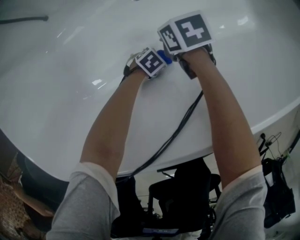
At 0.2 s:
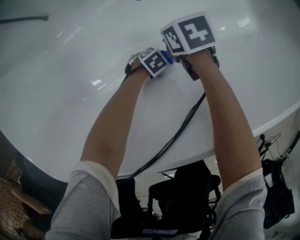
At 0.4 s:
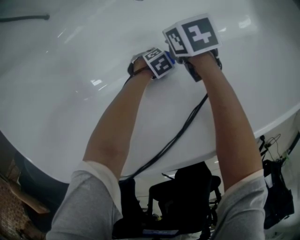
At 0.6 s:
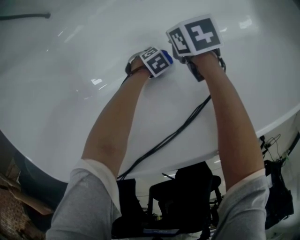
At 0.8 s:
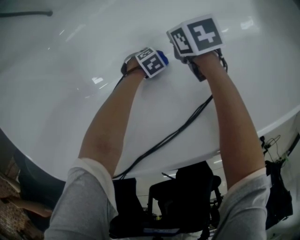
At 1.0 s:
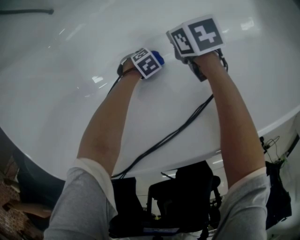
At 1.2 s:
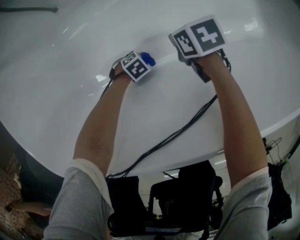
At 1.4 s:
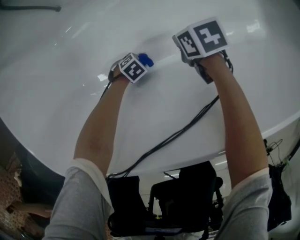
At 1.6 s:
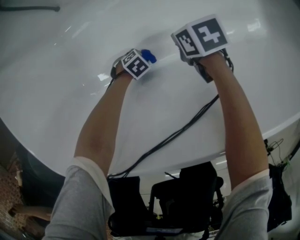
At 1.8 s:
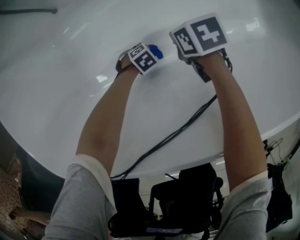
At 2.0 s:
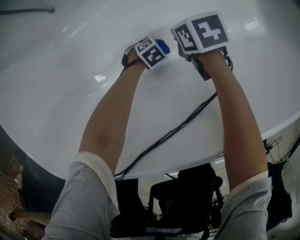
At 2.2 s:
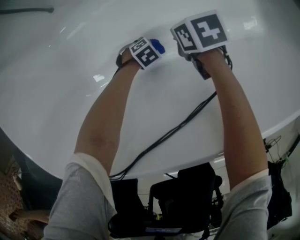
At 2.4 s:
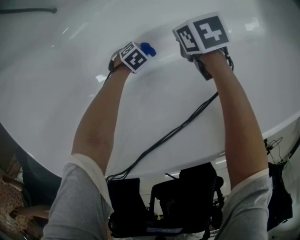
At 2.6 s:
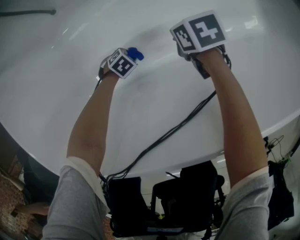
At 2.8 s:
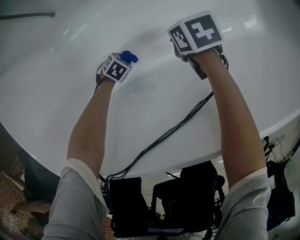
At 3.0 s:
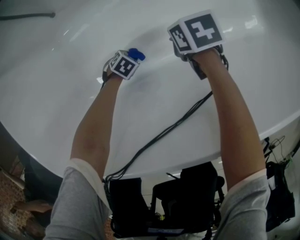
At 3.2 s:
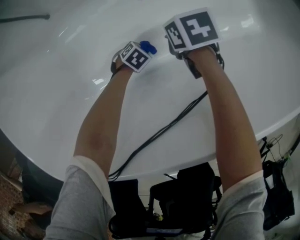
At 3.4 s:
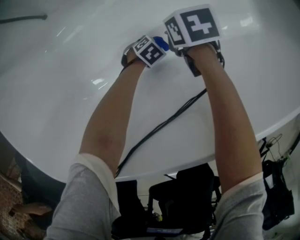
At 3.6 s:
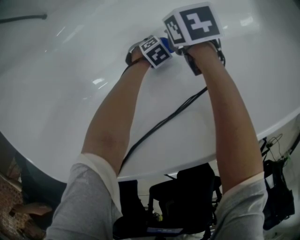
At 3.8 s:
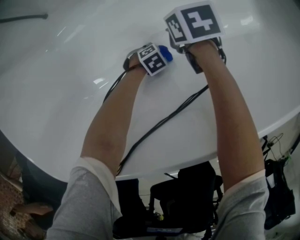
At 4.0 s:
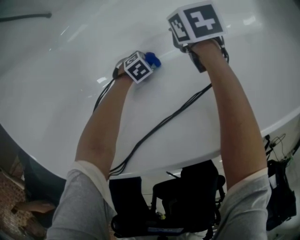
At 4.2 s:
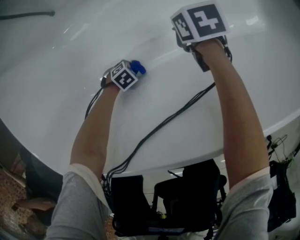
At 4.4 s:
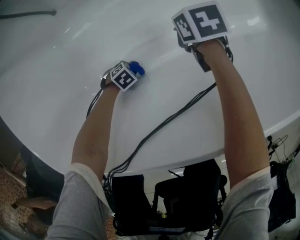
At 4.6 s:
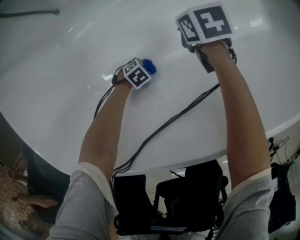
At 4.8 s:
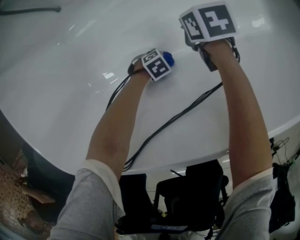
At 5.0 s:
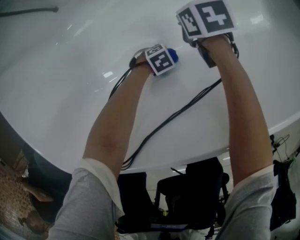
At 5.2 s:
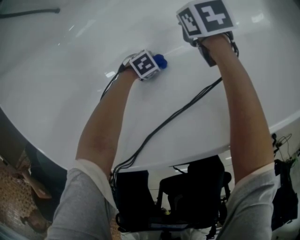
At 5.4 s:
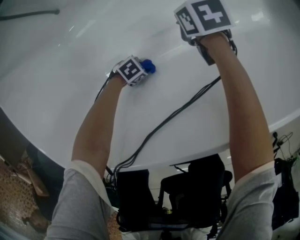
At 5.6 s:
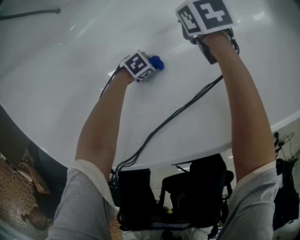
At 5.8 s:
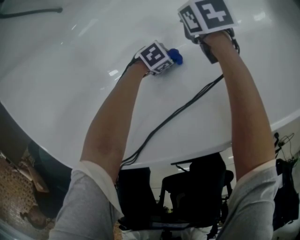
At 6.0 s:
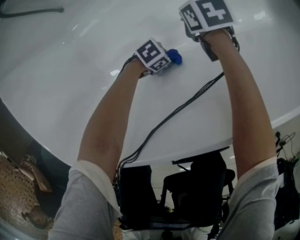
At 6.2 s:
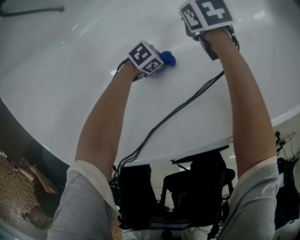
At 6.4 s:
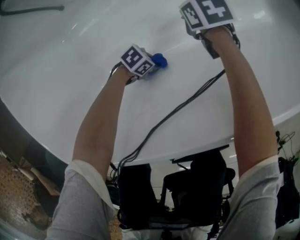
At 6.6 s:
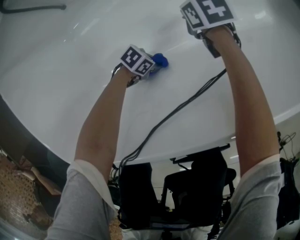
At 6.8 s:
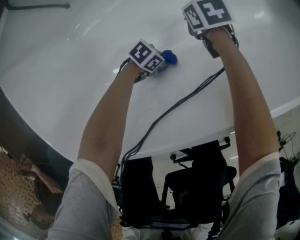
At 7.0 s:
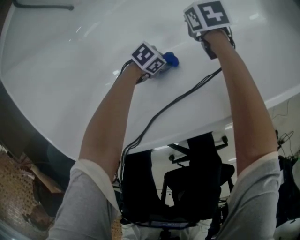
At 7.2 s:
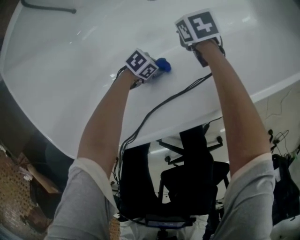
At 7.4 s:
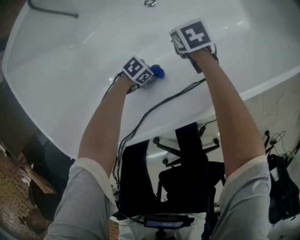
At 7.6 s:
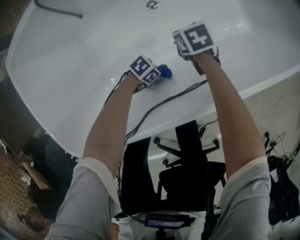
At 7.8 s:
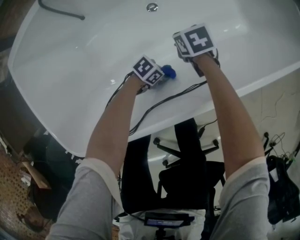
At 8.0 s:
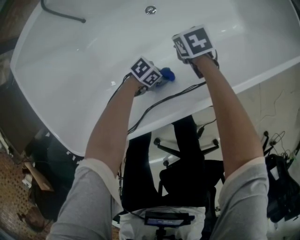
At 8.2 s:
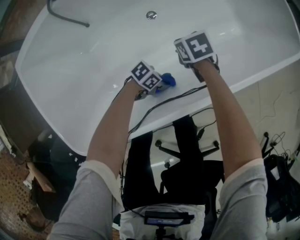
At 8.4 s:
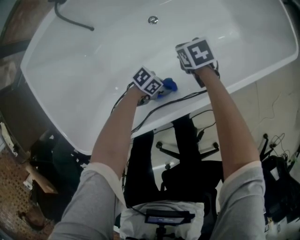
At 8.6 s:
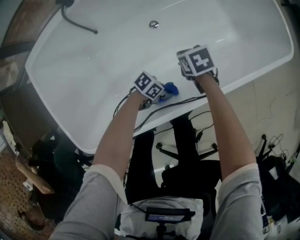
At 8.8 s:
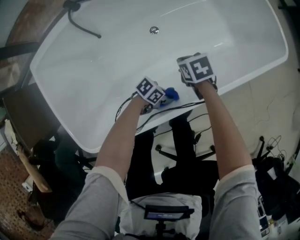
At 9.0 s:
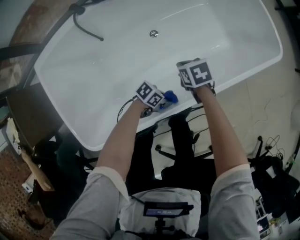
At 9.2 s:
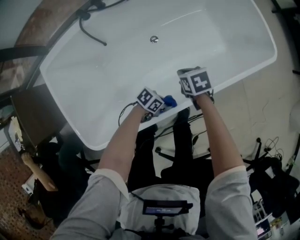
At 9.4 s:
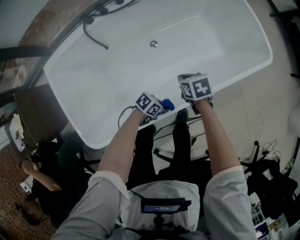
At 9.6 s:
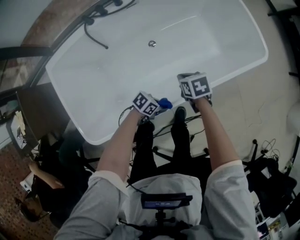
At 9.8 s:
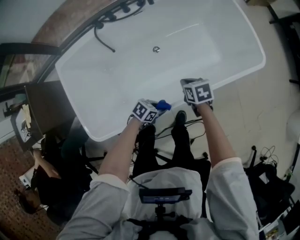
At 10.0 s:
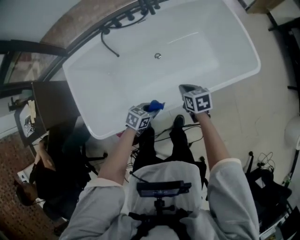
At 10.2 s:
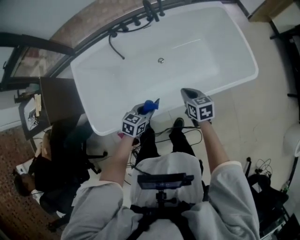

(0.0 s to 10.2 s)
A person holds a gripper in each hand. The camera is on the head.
0.0 s - 1.4 s: The left gripper moves approximately 15 cm.
4.4 s - 5.8 s: The left gripper moves some 15 cm, and rotates some 20 degrees.
5.8 s - 7.2 s: The left gripper is displaced upward by some 5 cm.
7.2 s - 8.8 s: Both grippers travel together upward, some 20 cm.
8.8 s - 10.2 s: The grippers both shift upward by approximately 25 cm. The left gripper rotates approximately 50 degrees. Meanwhile the right gripper turns by about 20 degrees.

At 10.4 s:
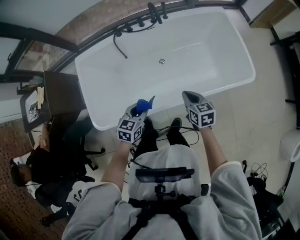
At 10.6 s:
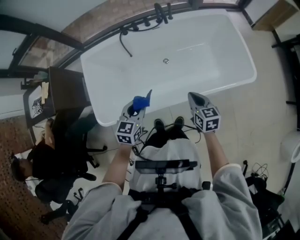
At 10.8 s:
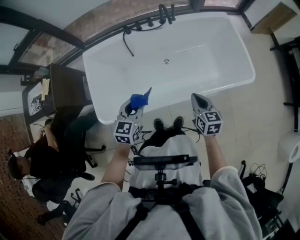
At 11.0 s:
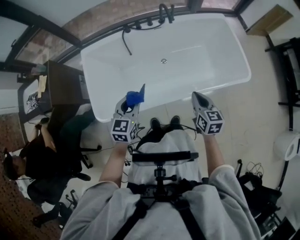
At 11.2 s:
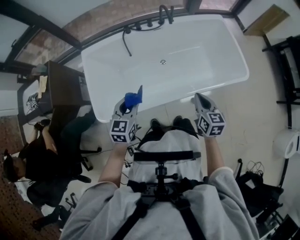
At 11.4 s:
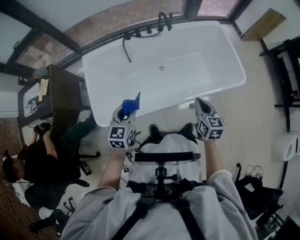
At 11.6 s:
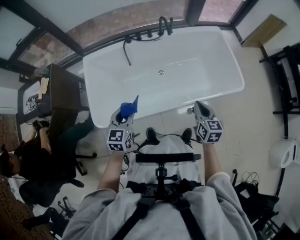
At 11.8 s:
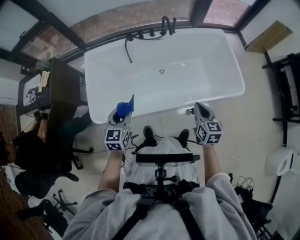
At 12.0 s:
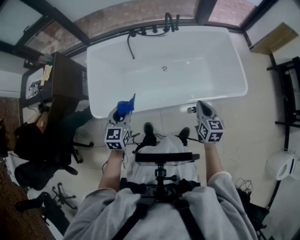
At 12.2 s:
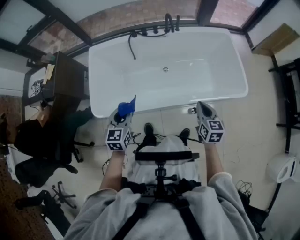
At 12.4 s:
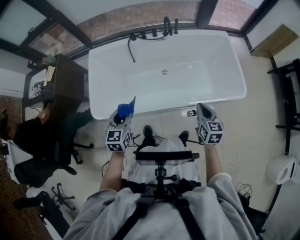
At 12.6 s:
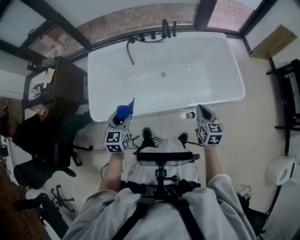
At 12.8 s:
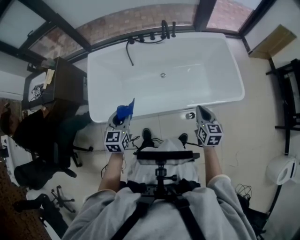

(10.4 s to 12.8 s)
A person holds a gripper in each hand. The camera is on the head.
10.4 s - 11.6 s: The right gripper is displaced upward and backward by some 15 cm. The left gripper goes roughly 20 cm upward, to the left and backward, and swivels some 20 degrees.
11.6 s - 12.8 s: The right gripper heads to the right, covering some 10 cm; the left gripper changes place by approximately 5 cm.

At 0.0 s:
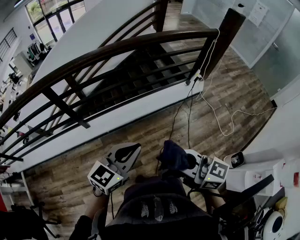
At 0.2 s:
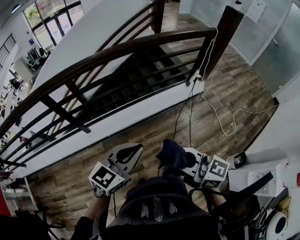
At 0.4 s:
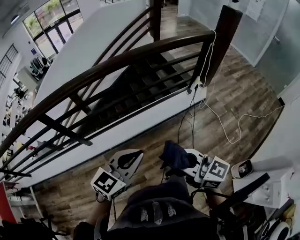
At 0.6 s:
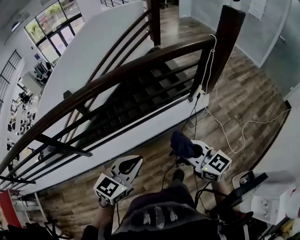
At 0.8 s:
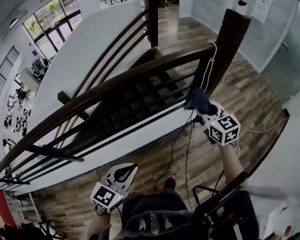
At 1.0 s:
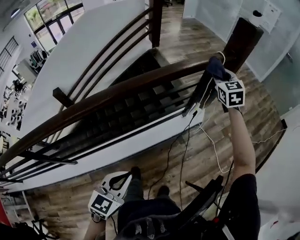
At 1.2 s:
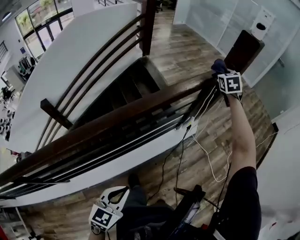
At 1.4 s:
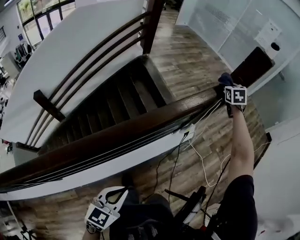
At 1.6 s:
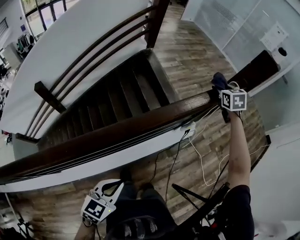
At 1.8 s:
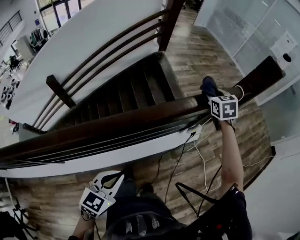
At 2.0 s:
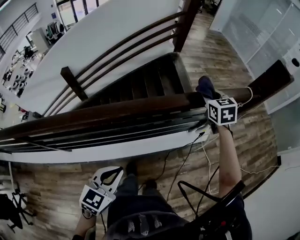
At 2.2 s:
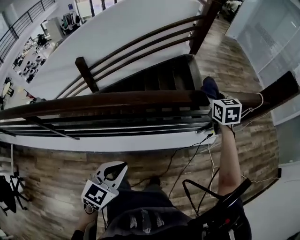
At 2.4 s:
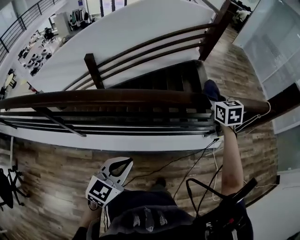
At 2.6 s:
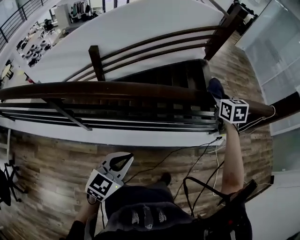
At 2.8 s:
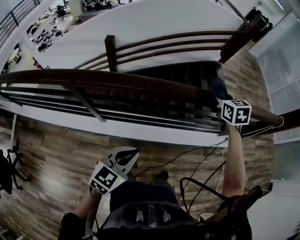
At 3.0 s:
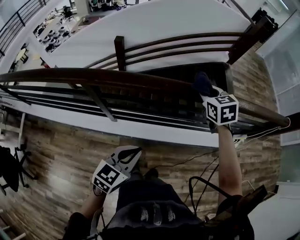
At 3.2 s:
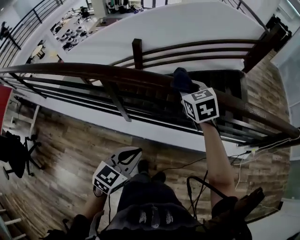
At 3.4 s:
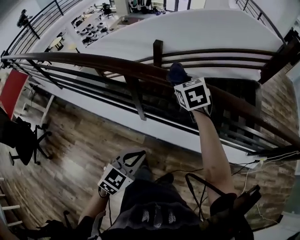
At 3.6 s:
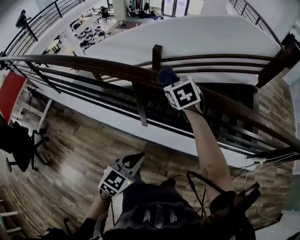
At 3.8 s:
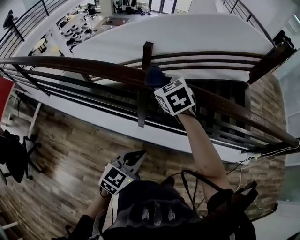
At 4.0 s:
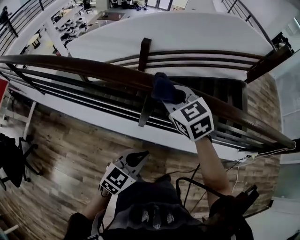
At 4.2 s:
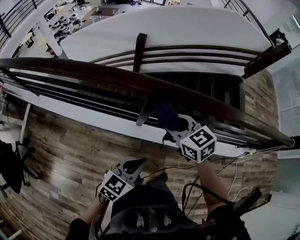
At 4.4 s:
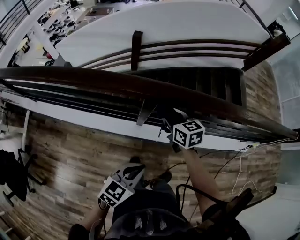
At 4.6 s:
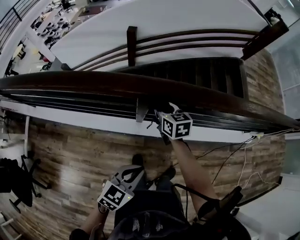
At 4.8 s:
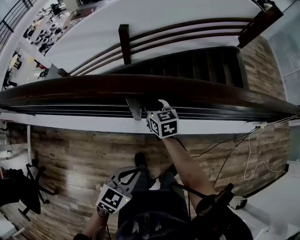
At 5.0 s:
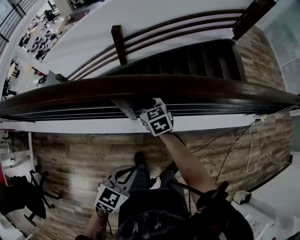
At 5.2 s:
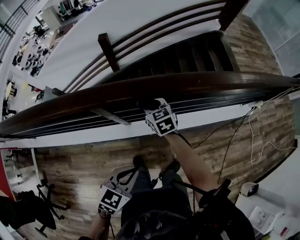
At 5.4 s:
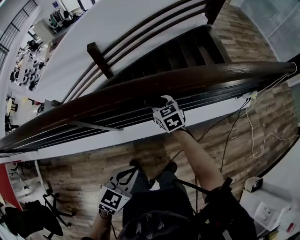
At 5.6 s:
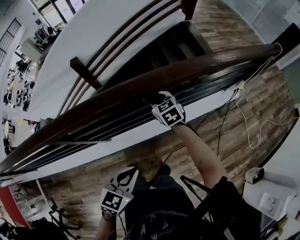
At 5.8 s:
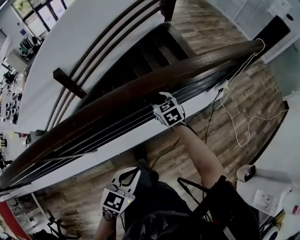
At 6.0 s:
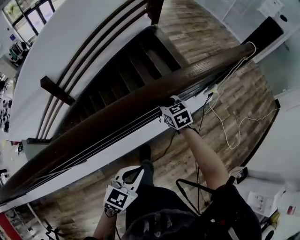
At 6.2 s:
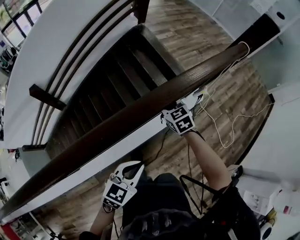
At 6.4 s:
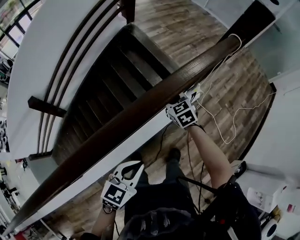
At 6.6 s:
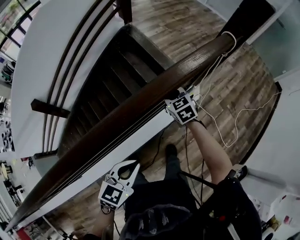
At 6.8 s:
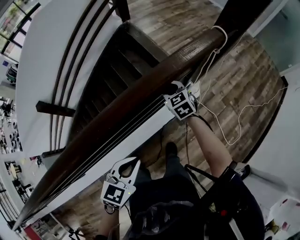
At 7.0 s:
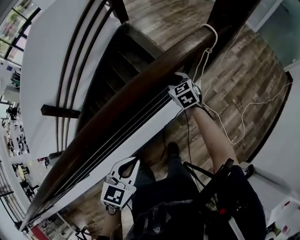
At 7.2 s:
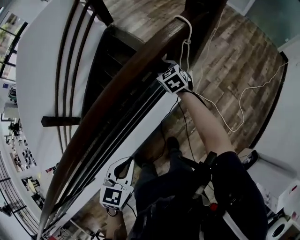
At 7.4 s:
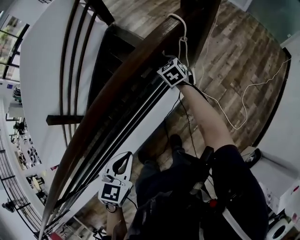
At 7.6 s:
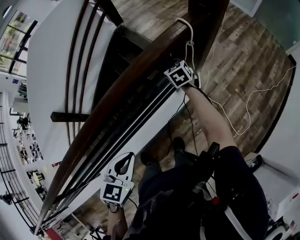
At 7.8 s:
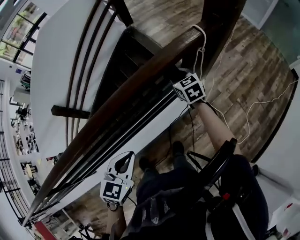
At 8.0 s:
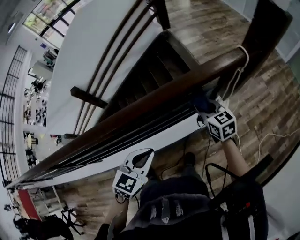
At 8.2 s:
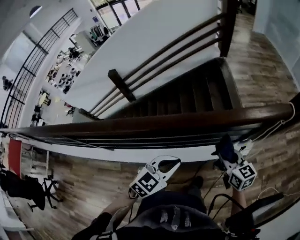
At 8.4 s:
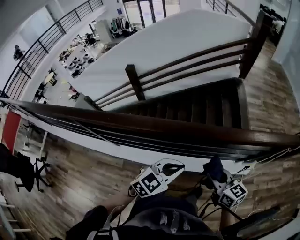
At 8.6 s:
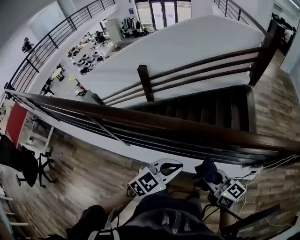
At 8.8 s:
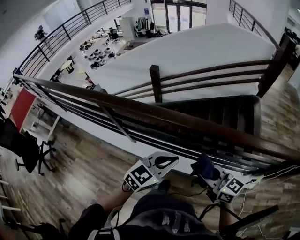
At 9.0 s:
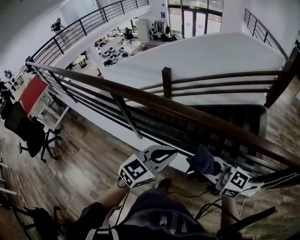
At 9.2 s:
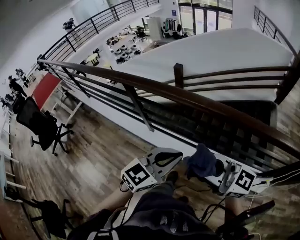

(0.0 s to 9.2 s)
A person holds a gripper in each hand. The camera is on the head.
0.0 s - 1.6 s: Both grippers are carried approximately 80 cm. The right gripper tips its fingers downward by some 40 degrees.
1.6 s - 3.0 s: Both grippers are carried roughly 60 cm. The right gripper rotates roughly 40 degrees; the left gripper swivels about 30 degrees.
3.0 s - 4.6 s: The left gripper goes about 25 cm to the left, while the right gripper goes some 50 cm to the left and downward, and rotates roughly 30 degrees.
4.6 s - 6.2 s: The two grippers travel together, some 70 cm. The left gripper turns by roughly 30 degrees. The right gripper turns by approximately 30 degrees.
6.2 s - 7.6 s: The grippers both shift to the right and forward by approximately 40 cm.
7.6 s - 9.2 s: The right gripper moves roughly 80 cm, and angles its fingers upward, by about 50 degrees; the left gripper moves some 40 cm, and changes its angle by roughly 40 degrees.

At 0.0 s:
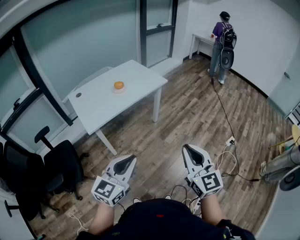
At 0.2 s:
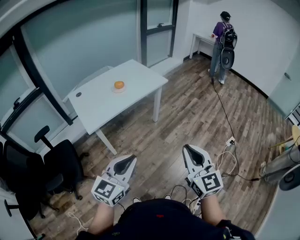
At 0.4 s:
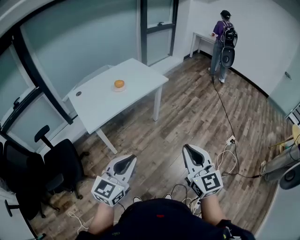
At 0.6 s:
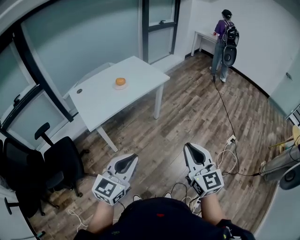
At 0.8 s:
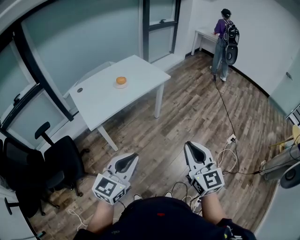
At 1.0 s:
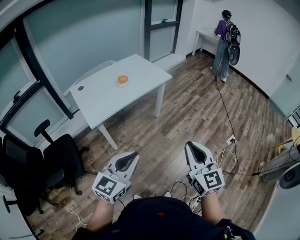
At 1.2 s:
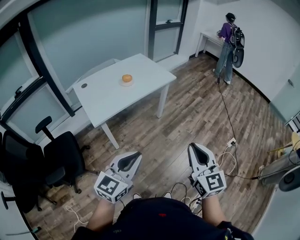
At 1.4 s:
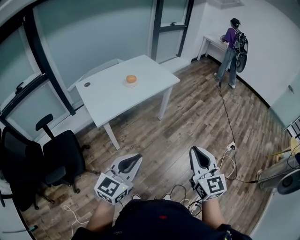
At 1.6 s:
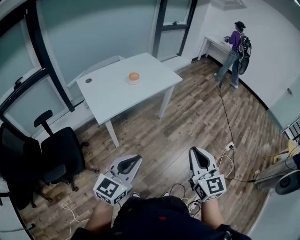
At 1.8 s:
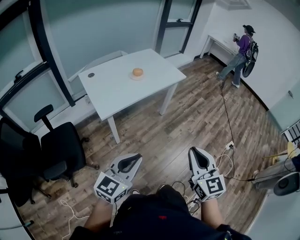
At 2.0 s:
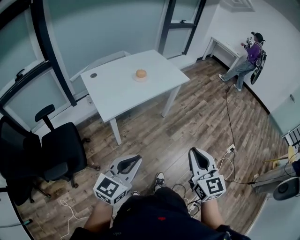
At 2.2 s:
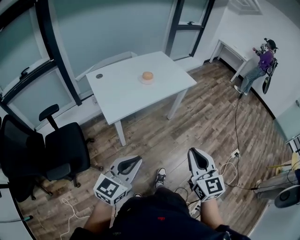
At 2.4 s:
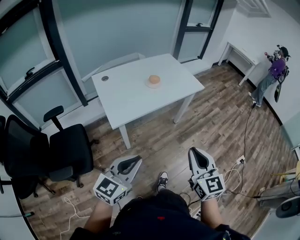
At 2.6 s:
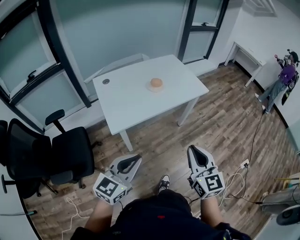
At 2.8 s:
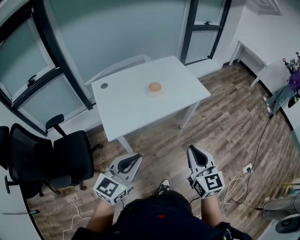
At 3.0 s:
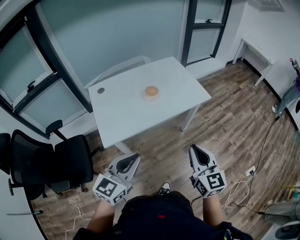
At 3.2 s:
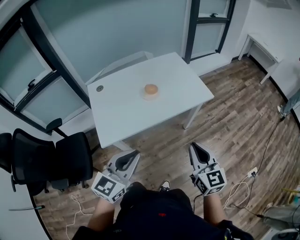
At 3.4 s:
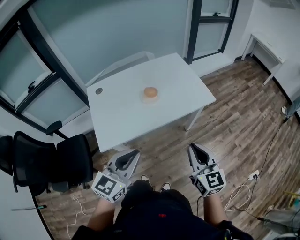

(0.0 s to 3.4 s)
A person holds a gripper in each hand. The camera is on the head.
0.0 s - 1.6 s: Both grippers travel together to the left, some 10 cm.
1.6 s - 3.4 s: Both grippers travel together forward, roughly 40 cm. The right gripper changes its angle by about 20 degrees.
